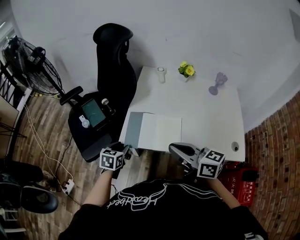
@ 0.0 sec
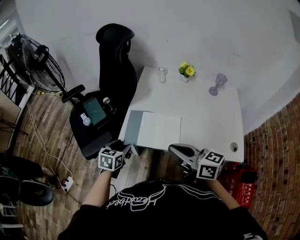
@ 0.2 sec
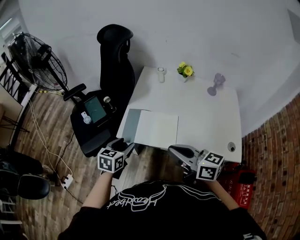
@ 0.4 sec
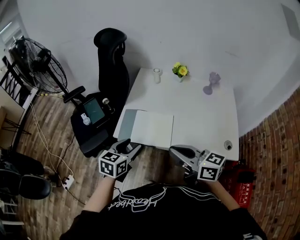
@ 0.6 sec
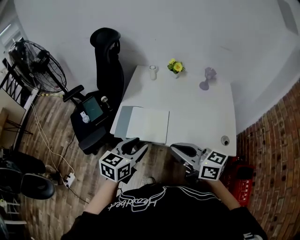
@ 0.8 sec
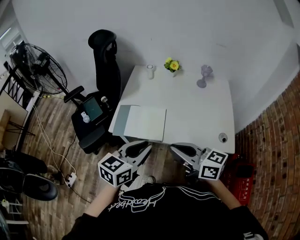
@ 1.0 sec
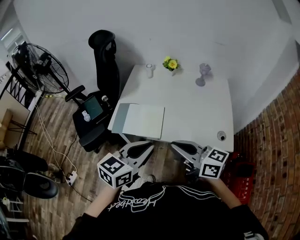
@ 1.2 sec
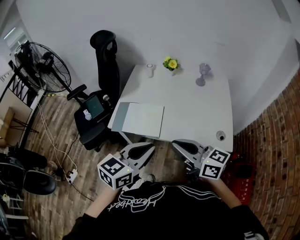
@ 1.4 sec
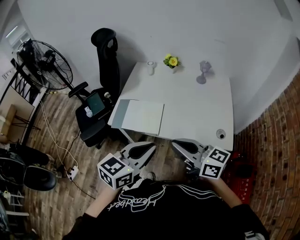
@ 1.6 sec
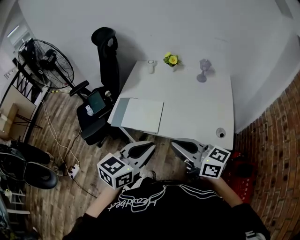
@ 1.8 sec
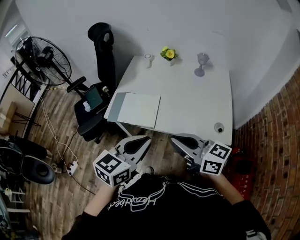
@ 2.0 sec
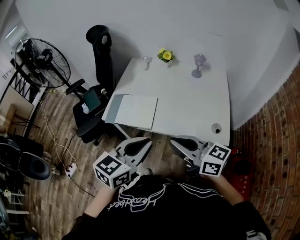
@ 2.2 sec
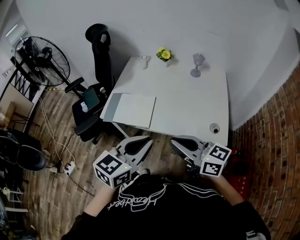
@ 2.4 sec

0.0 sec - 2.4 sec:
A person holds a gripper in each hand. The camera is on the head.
0.0 sec - 1.2 sec: The left gripper heads upward, to the right and backward, covering approximately 40 cm, changes its angle by some 30 degrees, and closes; the right gripper moves backward and to the right, roughly 15 cm.
1.2 sec - 2.4 sec: The grippers both shift to the right by some 5 cm.

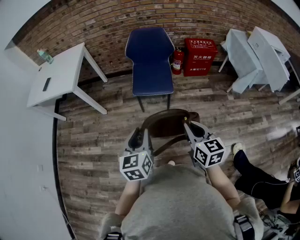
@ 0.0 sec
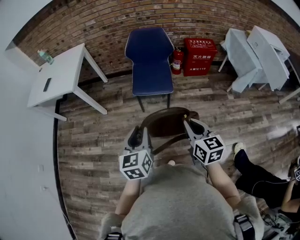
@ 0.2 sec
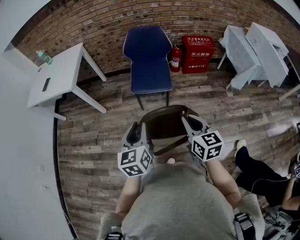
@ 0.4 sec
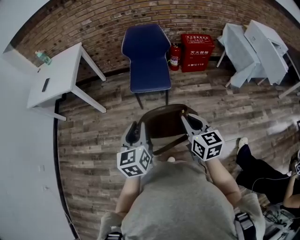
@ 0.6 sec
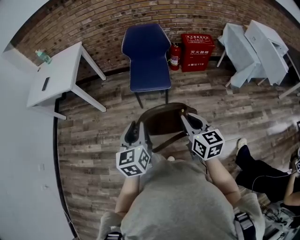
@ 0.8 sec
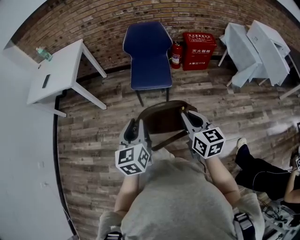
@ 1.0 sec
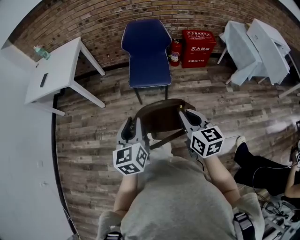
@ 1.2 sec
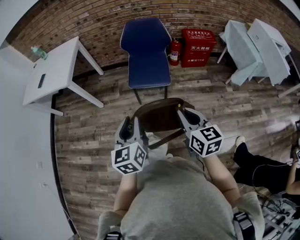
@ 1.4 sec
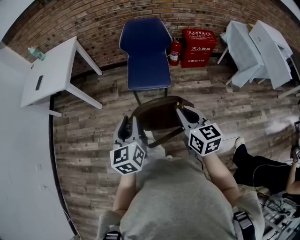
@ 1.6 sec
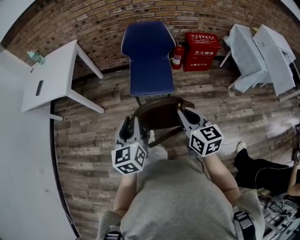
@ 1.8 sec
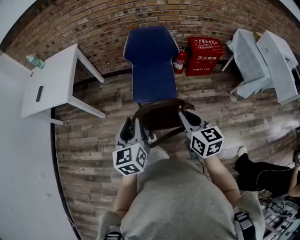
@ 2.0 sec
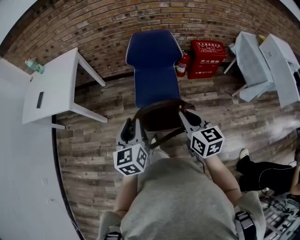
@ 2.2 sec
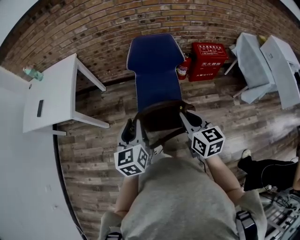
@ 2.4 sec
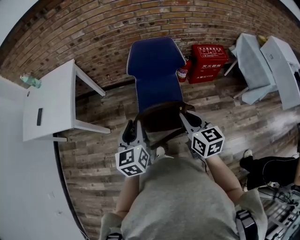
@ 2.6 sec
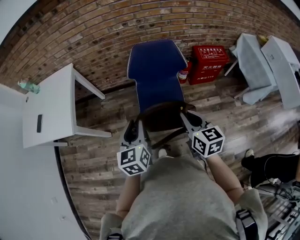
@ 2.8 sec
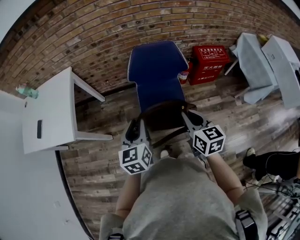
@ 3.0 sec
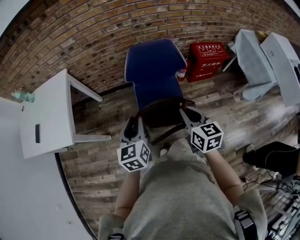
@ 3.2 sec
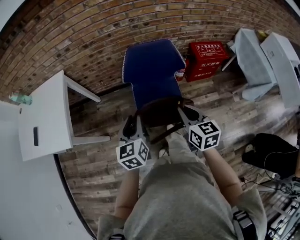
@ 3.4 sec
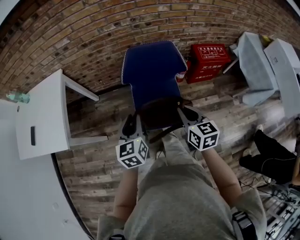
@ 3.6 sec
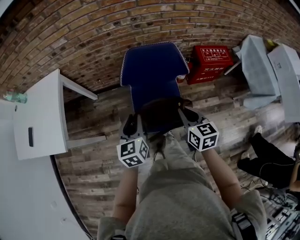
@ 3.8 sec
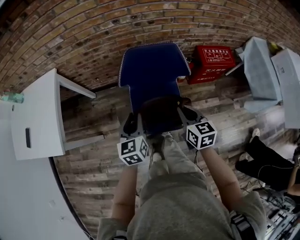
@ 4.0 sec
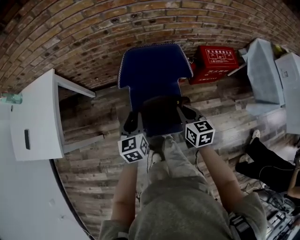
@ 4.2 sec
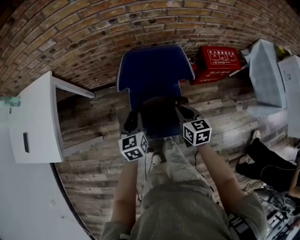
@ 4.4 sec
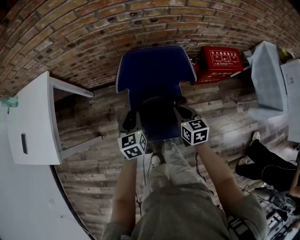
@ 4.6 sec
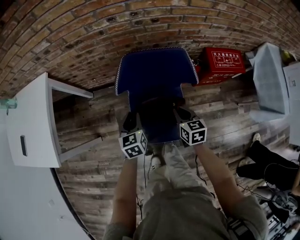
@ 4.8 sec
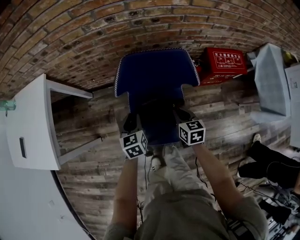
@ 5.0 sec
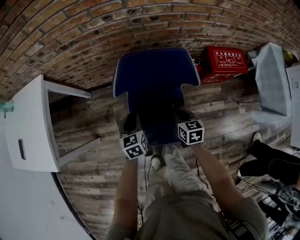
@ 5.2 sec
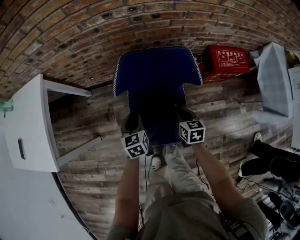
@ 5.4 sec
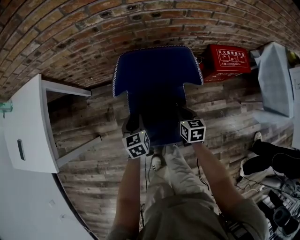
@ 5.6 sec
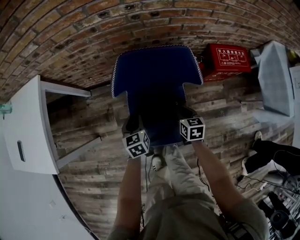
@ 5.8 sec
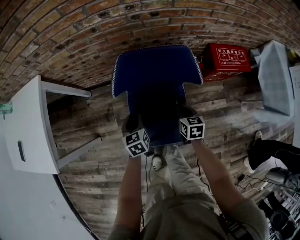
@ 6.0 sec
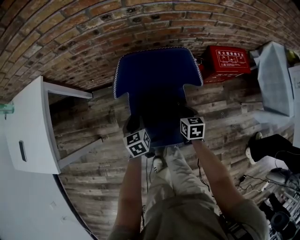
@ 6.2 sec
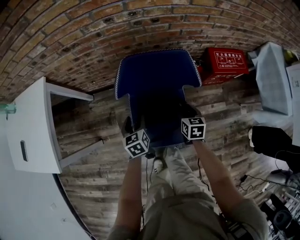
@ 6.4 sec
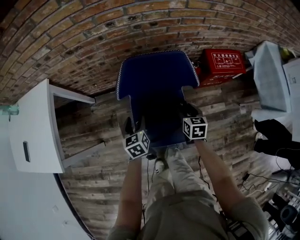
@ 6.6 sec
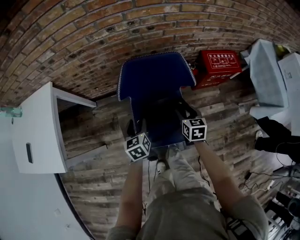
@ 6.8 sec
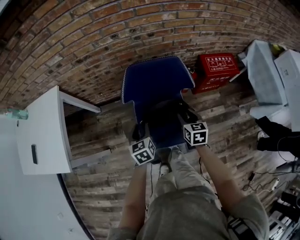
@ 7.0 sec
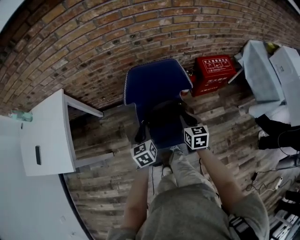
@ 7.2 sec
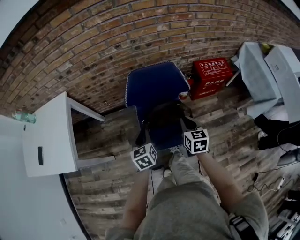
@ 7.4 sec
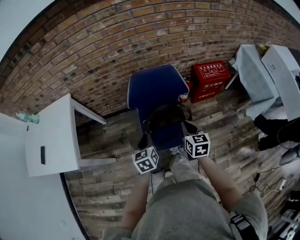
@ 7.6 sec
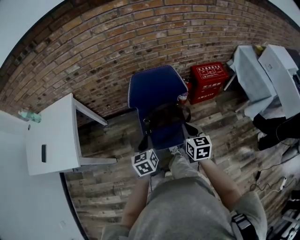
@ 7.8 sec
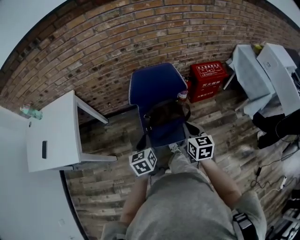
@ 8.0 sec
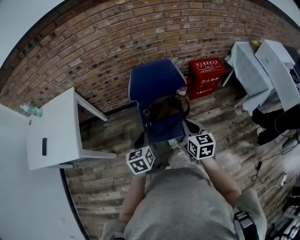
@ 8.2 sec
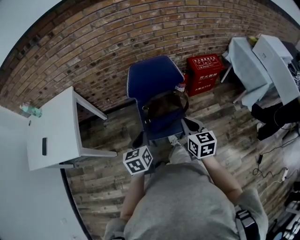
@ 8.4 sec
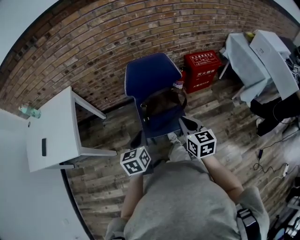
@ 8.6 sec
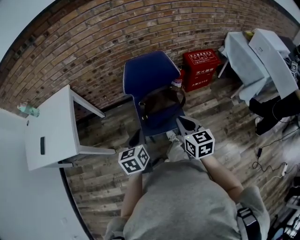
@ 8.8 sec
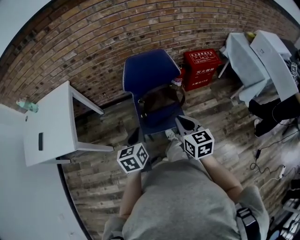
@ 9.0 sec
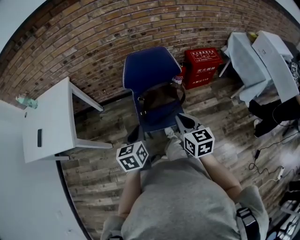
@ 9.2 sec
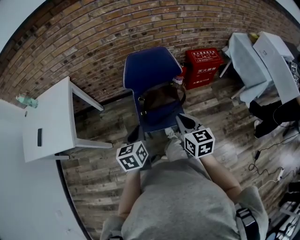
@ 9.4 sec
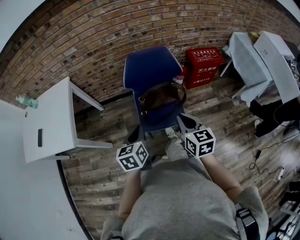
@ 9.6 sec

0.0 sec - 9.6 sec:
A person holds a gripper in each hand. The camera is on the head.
0.0 sec - 1.6 sec: Both grippers travel together forward, roughly 5 cm.
1.6 sec - 3.2 sec: The two grippers go approximately 35 cm forward.
3.2 sec - 4.8 sec: The right gripper moves downward and forward, about 30 cm, while the left gripper travels forward and downward by some 30 cm.
4.8 sec - 6.4 sec: The two grippers go about 5 cm downward. The left gripper opens its fingers. Meanwhile the right gripper opens up.
6.4 sec - 8.0 sec: The right gripper travels upward and backward by about 35 cm, swivels roughly 20 degrees, and closes, while the left gripper travels backward and upward by some 30 cm, and closes up.
8.0 sec - 9.6 sec: The grippers both shift backward by about 5 cm.

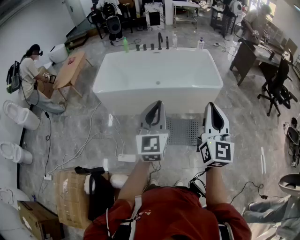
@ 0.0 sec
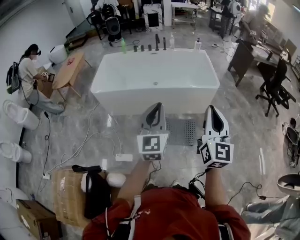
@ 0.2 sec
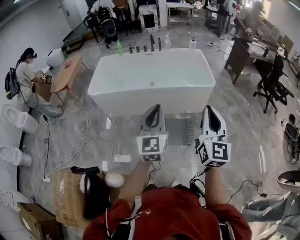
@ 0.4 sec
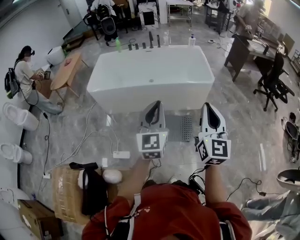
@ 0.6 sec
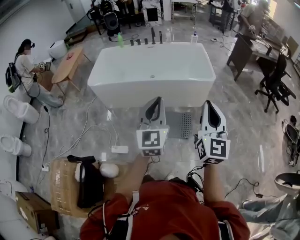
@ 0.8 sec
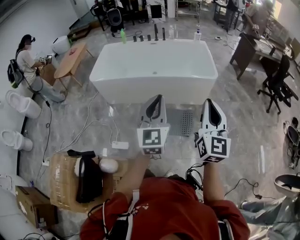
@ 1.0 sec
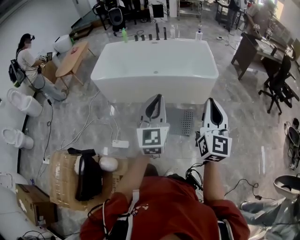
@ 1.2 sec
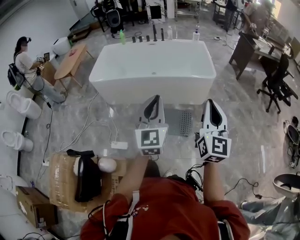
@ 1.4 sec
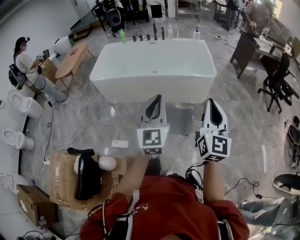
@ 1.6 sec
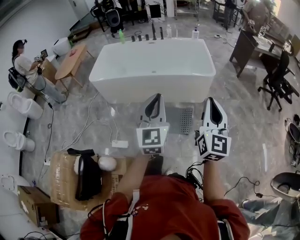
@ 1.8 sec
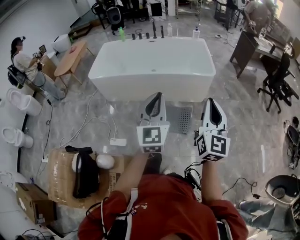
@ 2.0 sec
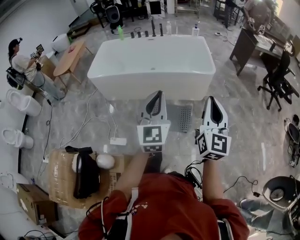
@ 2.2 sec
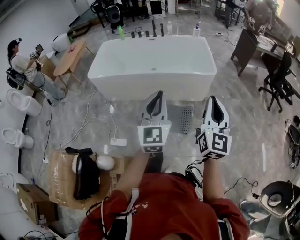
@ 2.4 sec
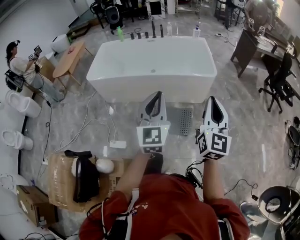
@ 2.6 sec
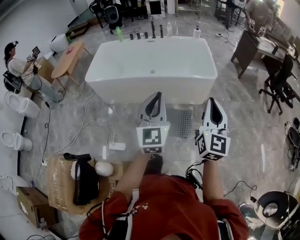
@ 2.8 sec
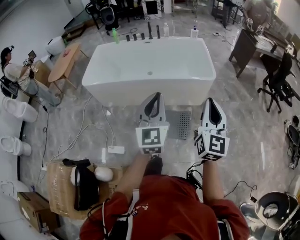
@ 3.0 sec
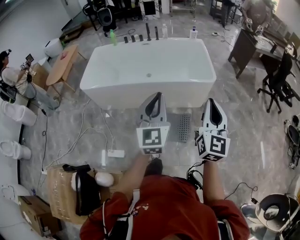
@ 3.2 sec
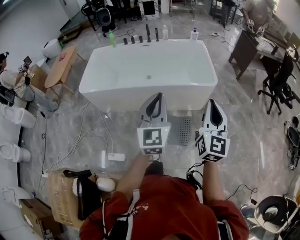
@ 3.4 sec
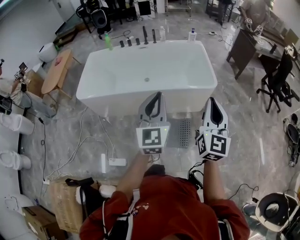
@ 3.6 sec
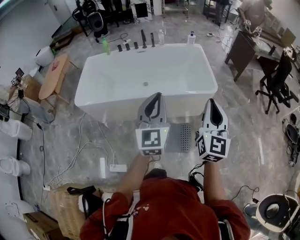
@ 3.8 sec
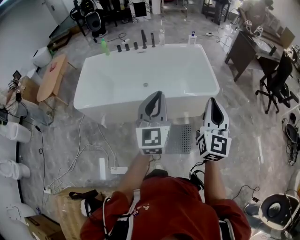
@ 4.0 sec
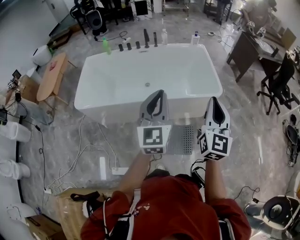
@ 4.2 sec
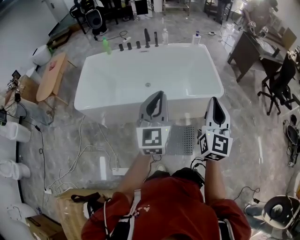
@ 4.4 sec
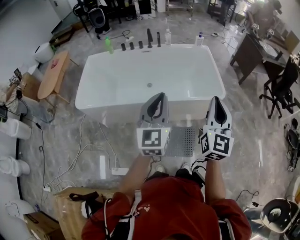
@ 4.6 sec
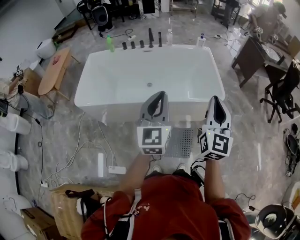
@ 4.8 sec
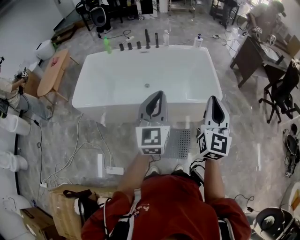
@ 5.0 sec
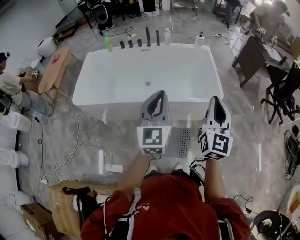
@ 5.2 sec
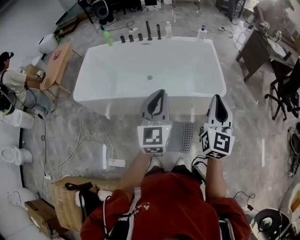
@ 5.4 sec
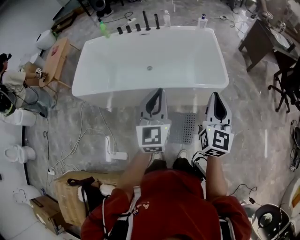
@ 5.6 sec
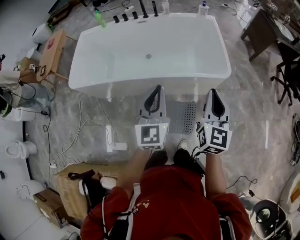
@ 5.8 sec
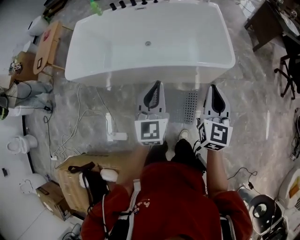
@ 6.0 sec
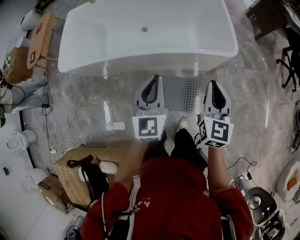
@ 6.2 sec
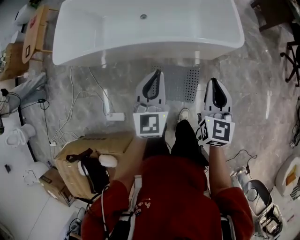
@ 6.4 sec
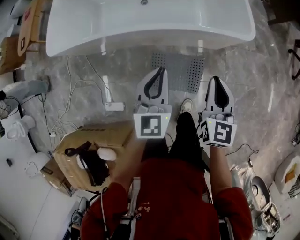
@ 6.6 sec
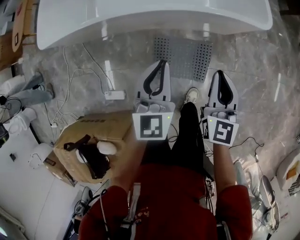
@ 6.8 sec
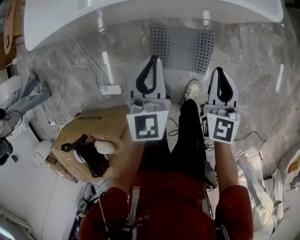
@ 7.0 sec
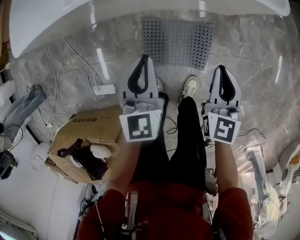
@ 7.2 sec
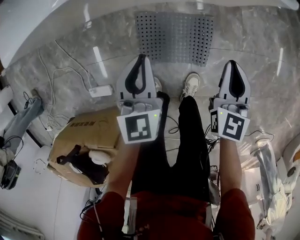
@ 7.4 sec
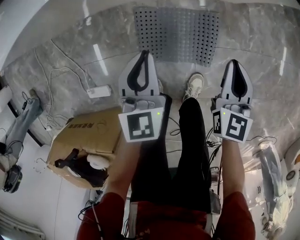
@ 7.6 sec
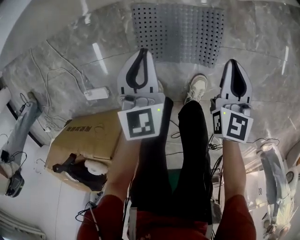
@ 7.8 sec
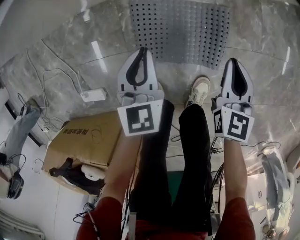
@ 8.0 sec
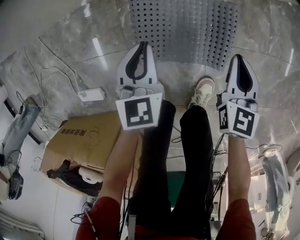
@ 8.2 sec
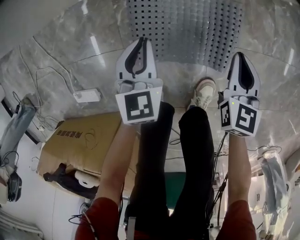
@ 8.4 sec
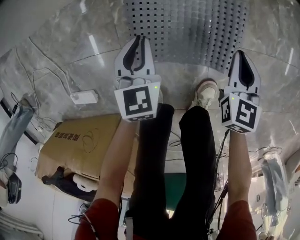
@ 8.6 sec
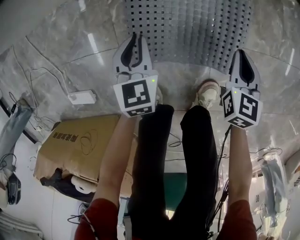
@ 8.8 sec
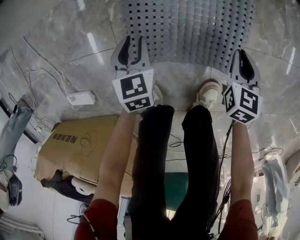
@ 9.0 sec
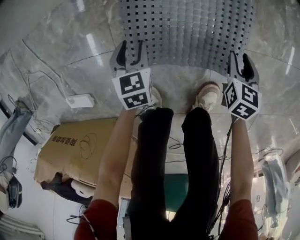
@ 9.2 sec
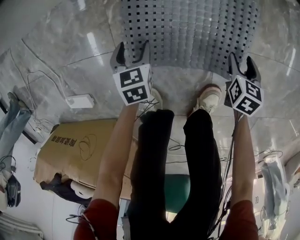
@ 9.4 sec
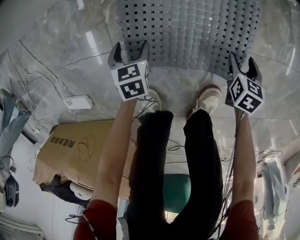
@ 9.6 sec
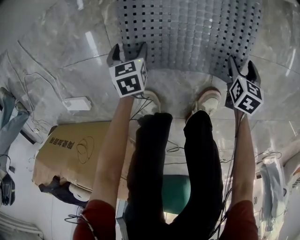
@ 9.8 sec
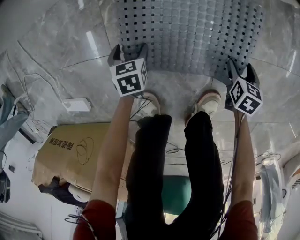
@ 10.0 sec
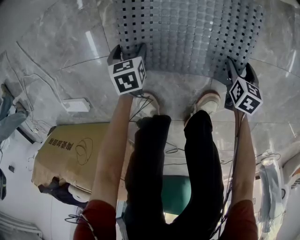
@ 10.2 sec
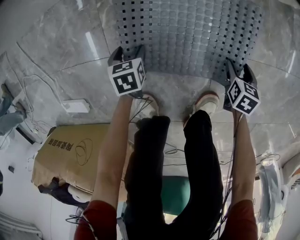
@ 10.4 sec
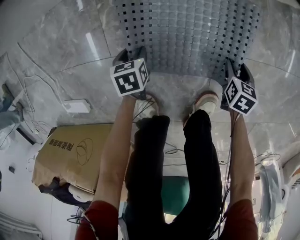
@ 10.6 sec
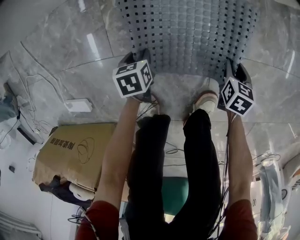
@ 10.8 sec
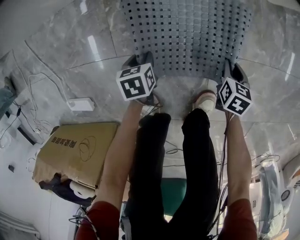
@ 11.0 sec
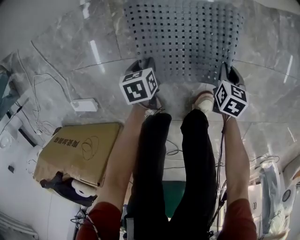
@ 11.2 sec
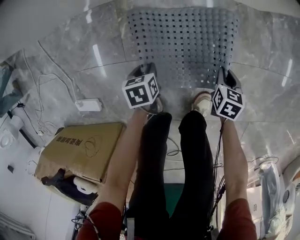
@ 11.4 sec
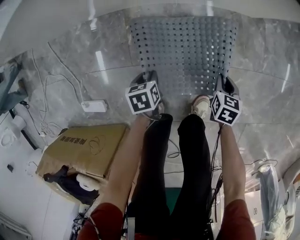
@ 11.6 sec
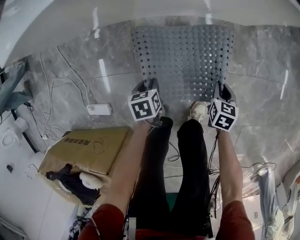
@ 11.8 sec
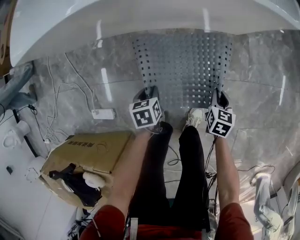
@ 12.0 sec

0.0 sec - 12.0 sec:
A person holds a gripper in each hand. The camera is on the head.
0.0 sec - 1.6 sec: The left gripper is displaced to the right and backward by approximately 15 cm, while the right gripper shifts about 15 cm to the right.
1.6 sec - 3.0 sec: Both grippers move forward, roughly 10 cm.
3.0 sec - 4.4 sec: The two grippers go about 25 cm forward and to the left.
4.4 sec - 6.0 sec: The left gripper shifts about 15 cm downward and to the right; the right gripper travels downward, forward and to the right by about 20 cm.
6.0 sec - 7.6 sec: The grippers both shift downward by some 50 cm. The left gripper turns by about 20 degrees.
7.6 sec - 9.0 sec: The grippers both shift downward by approximately 35 cm. The left gripper changes its angle by approximately 20 degrees.
9.0 sec - 10.4 sec: The grippers both shift downward by roughly 15 cm. The left gripper turns by some 30 degrees, and opens up. The right gripper turns by some 20 degrees, and opens.
10.4 sec - 12.0 sec: The grippers both shift upward by roughly 30 cm. The right gripper closes its fingers. Meanwhile the left gripper closes its fingers.
